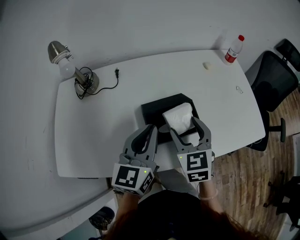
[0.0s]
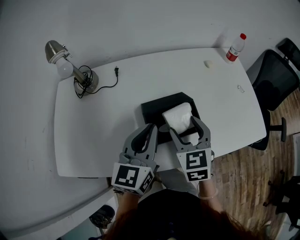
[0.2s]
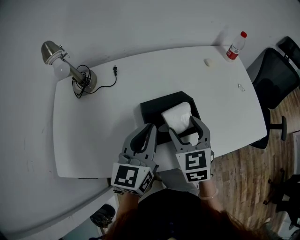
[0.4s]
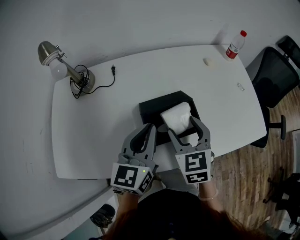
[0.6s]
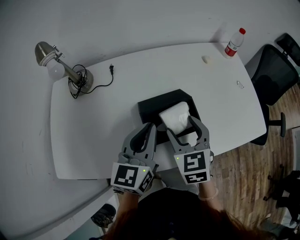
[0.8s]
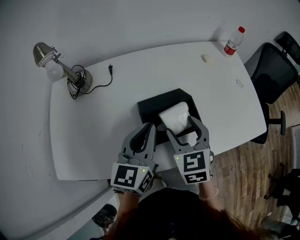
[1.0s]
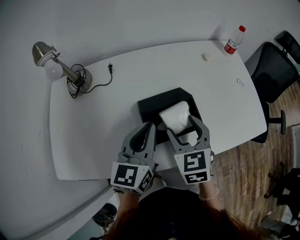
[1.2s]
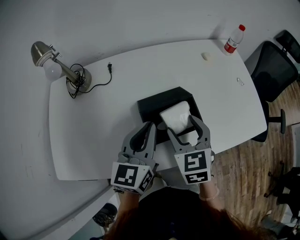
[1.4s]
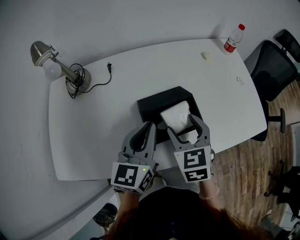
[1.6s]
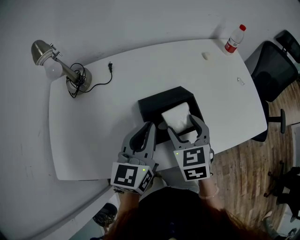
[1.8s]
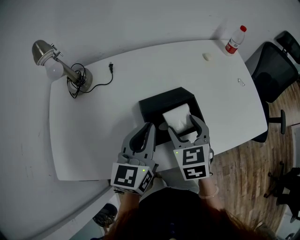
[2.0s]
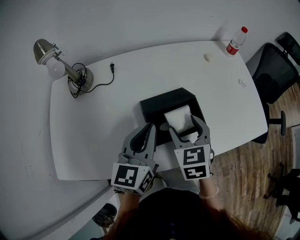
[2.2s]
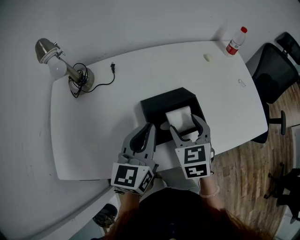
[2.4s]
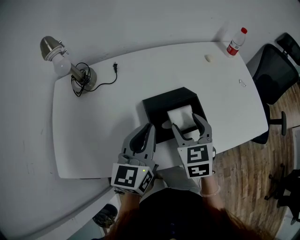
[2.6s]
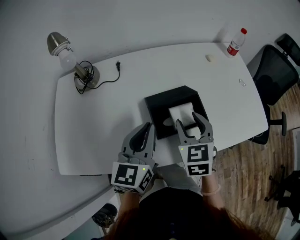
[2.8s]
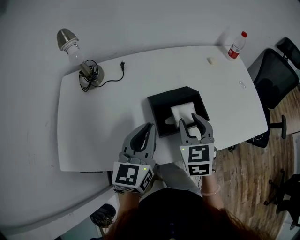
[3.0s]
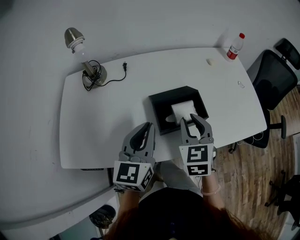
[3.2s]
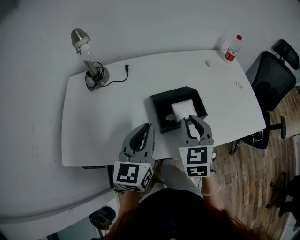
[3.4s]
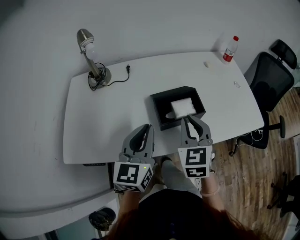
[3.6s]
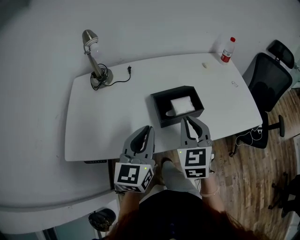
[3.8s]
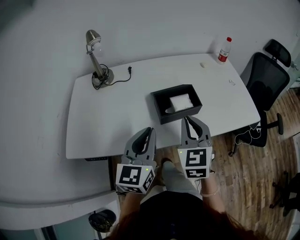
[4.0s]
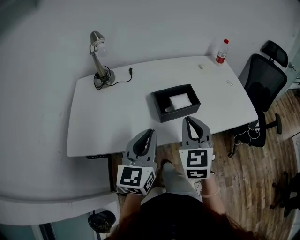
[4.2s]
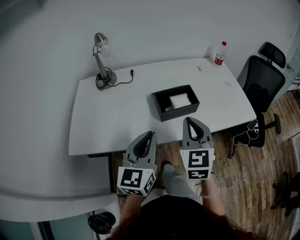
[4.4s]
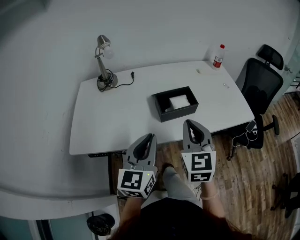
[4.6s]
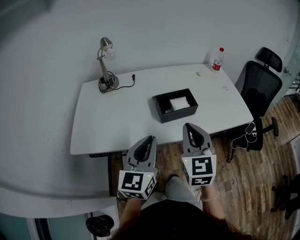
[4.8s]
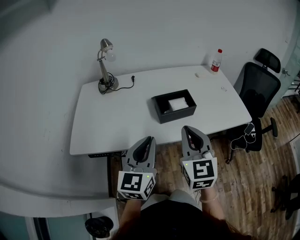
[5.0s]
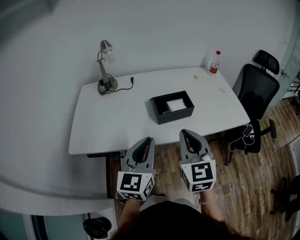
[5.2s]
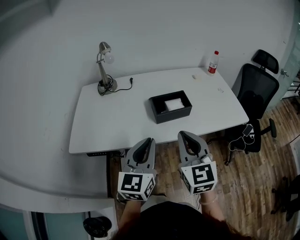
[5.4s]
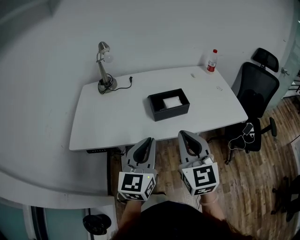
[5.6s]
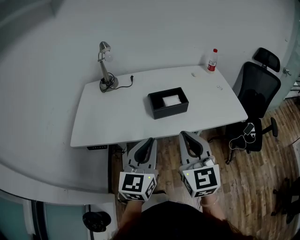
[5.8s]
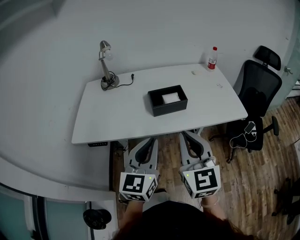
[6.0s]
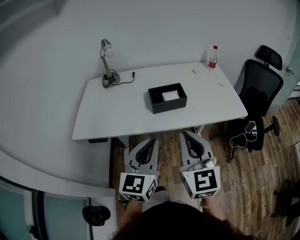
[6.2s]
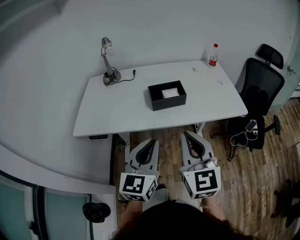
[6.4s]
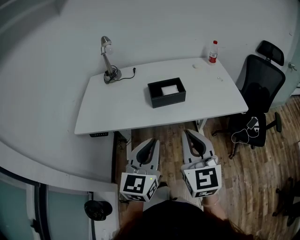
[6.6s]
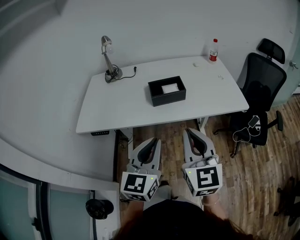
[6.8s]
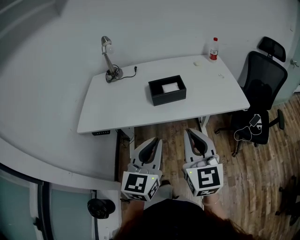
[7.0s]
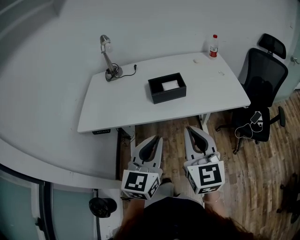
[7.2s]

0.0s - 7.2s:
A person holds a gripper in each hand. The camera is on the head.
0.0s - 2.8s: There are only small adjustments of the grippers.
2.8s - 4.4s: The left gripper travels backward by approximately 15 cm. Meanwhile the right gripper moves backward and upward, some 20 cm, and closes.
4.4s - 5.8s: The left gripper is displaced backward and to the right by some 10 cm; the right gripper goes some 10 cm backward.
5.8s - 7.2s: The grippers both shift backward and to the right by about 10 cm.

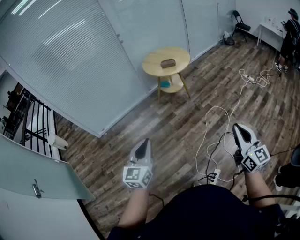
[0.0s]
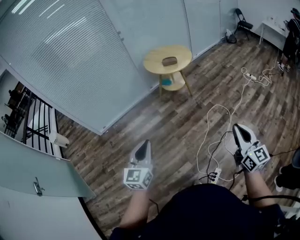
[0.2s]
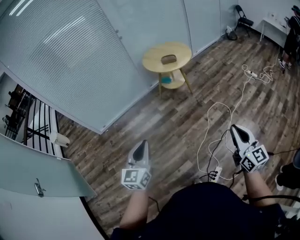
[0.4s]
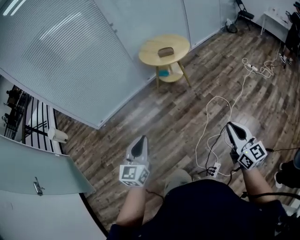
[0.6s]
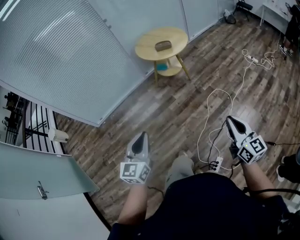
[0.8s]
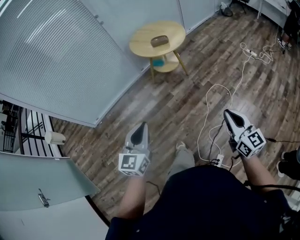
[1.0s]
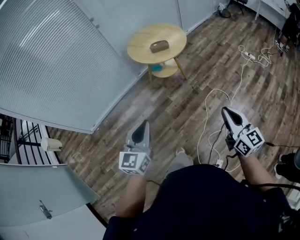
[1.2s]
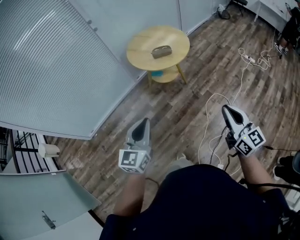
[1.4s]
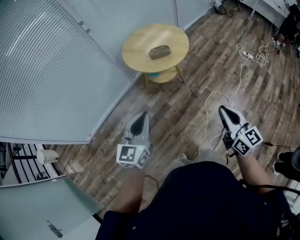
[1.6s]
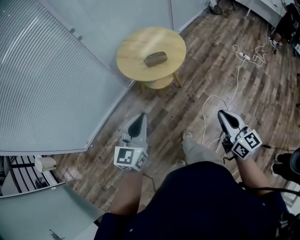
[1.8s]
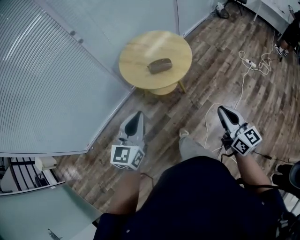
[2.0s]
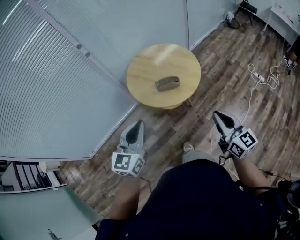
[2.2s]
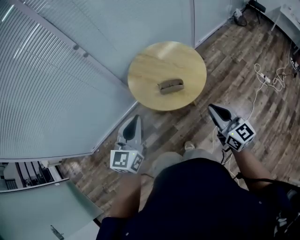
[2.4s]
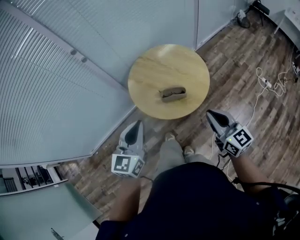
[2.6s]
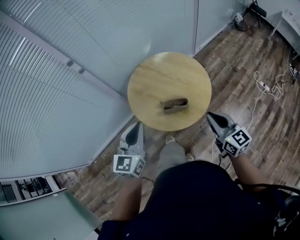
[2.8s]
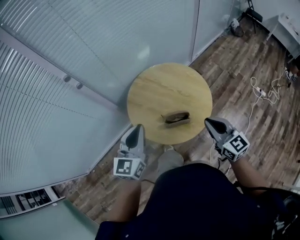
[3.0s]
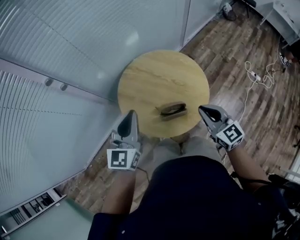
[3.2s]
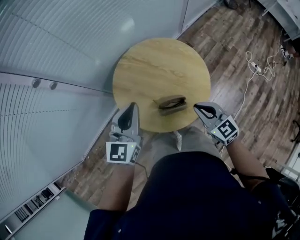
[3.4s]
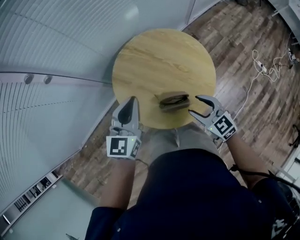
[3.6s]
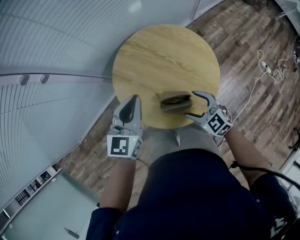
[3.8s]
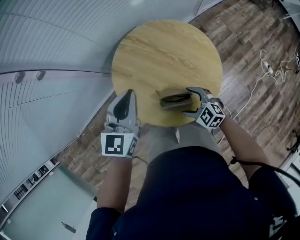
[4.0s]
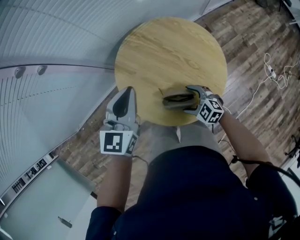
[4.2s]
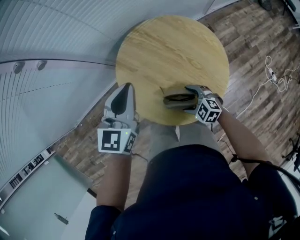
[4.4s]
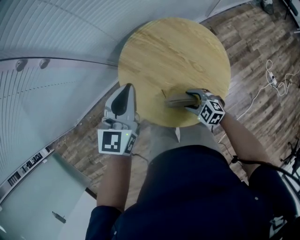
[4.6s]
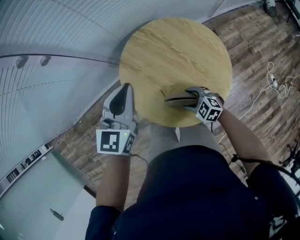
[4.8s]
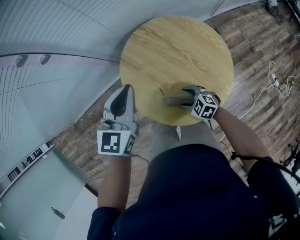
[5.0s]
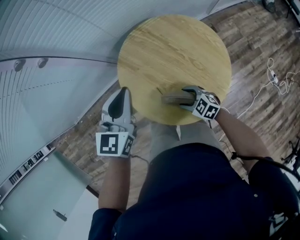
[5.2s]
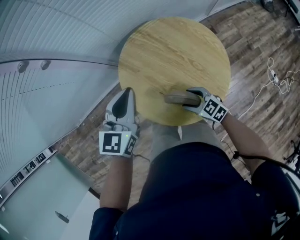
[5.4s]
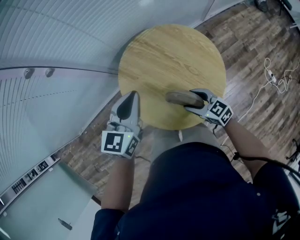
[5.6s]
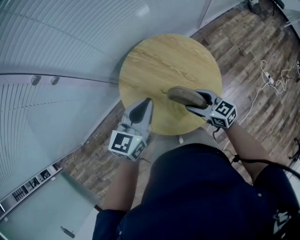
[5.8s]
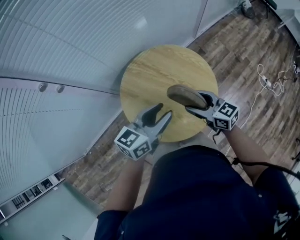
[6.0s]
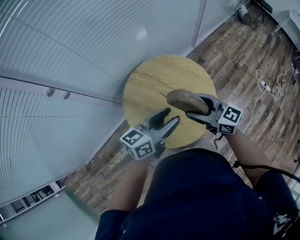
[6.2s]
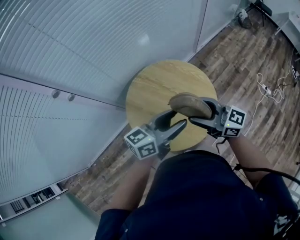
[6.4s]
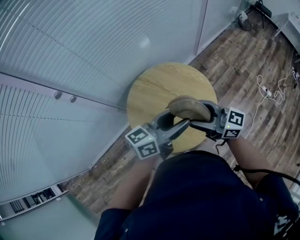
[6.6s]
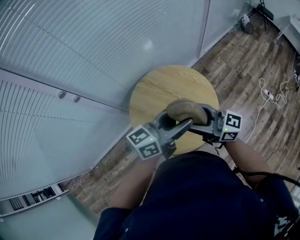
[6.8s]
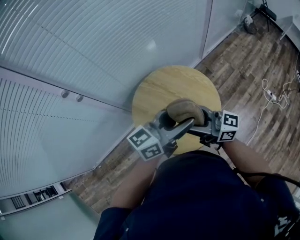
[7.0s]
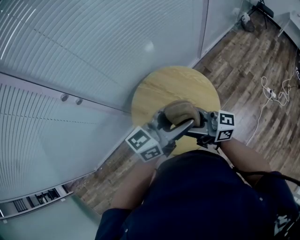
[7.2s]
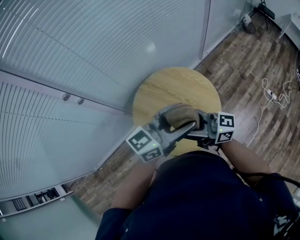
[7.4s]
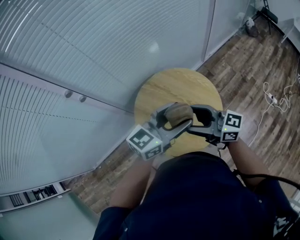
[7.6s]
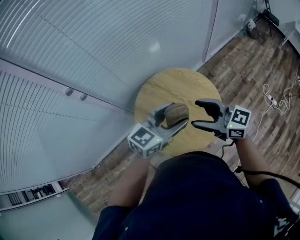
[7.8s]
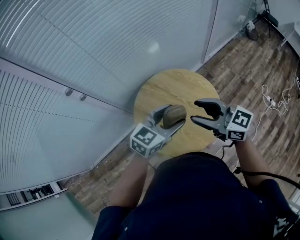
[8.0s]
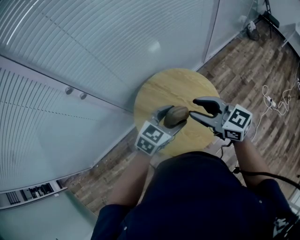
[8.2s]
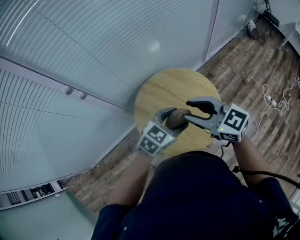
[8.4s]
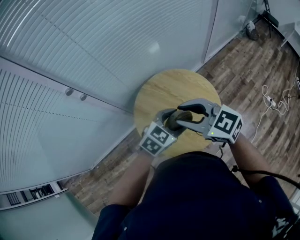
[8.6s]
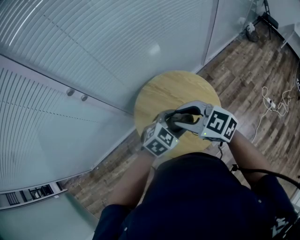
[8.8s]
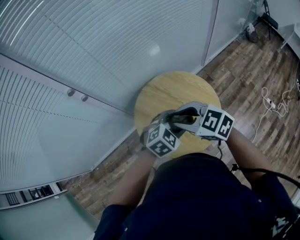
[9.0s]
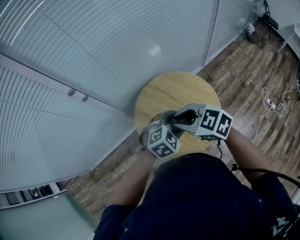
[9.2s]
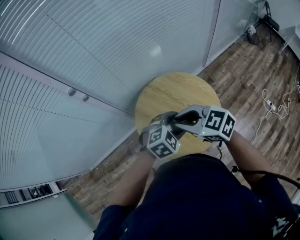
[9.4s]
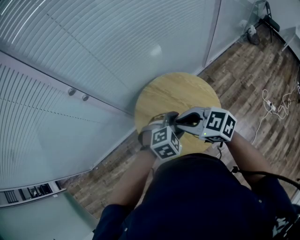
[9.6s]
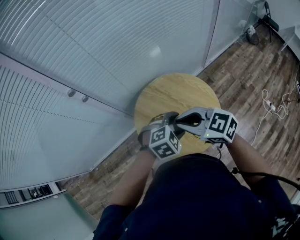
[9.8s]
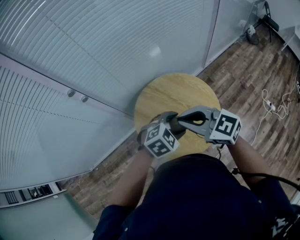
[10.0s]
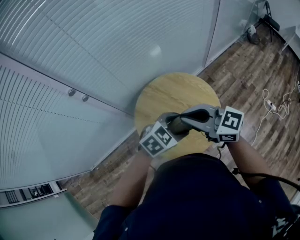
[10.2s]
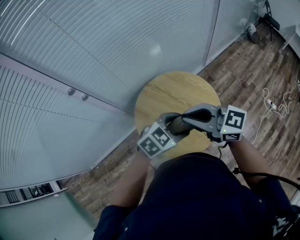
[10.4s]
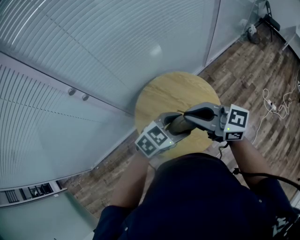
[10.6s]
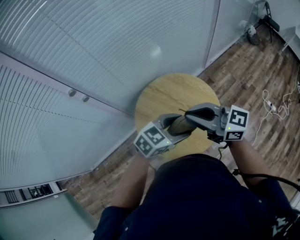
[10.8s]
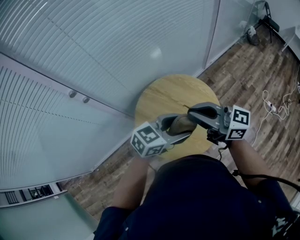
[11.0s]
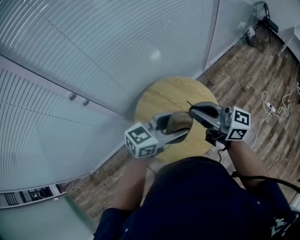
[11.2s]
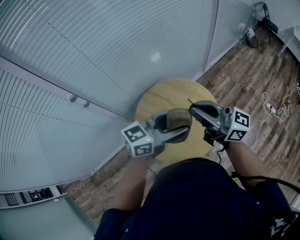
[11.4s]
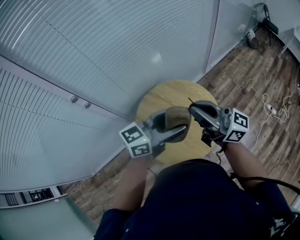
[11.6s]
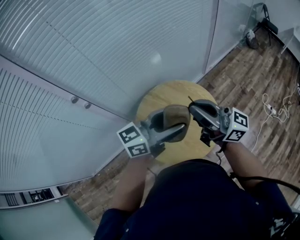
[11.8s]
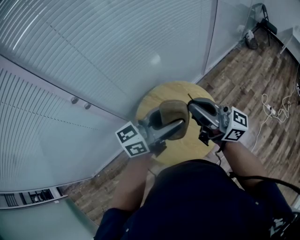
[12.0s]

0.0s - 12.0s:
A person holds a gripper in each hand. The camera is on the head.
0.0s - 1.6s: The two grippers travel together, forward, about 50 cm.
1.6s - 3.0s: Both grippers are carried forward, roughly 50 cm.
3.0s - 4.4s: The right gripper shifts roughly 30 cm downward, tilts its fingers approximately 40 degrees downward, and opens up, while the left gripper moves some 20 cm.
4.4s - 6.0s: The right gripper goes some 20 cm upward, and angles its fingers upward, by approximately 30 degrees, while the left gripper moves approximately 10 cm, swivels approximately 40 degrees, and opens up.
6.0s - 7.6s: Both grippers move upward, approximately 15 cm. The left gripper opens up, while the right gripper swivels roughly 30 degrees.
7.6s - 9.0s: The right gripper travels to the left by roughly 5 cm, tilts its fingers some 40 degrees downward, and closes its fingers. Meanwhile the left gripper goes roughly 10 cm downward, and points its fingers approximately 40 degrees further downward.
9.0s - 10.4s: The right gripper is displaced upward by roughly 5 cm, and changes its angle by some 30 degrees.
10.4s - 12.0s: The right gripper heads upward, covering about 10 cm, and points its fingers some 30 degrees further upward; the left gripper shifts some 15 cm upward, and angles its fingers upward, by roughly 50 degrees.

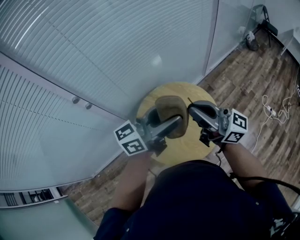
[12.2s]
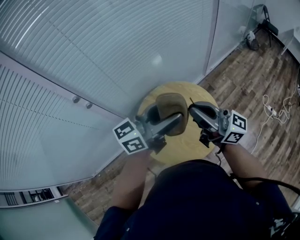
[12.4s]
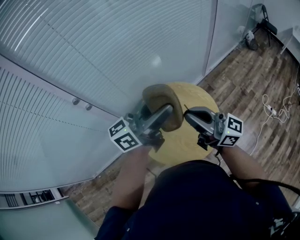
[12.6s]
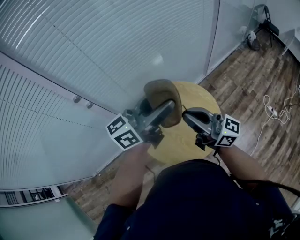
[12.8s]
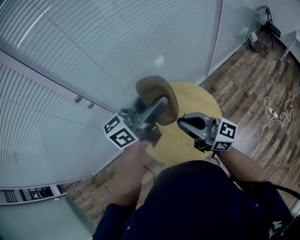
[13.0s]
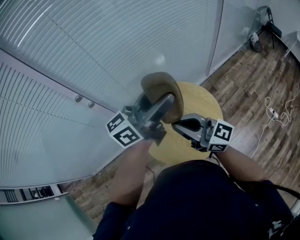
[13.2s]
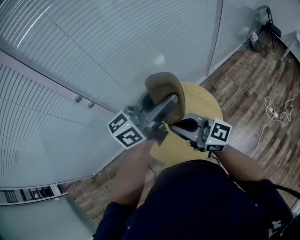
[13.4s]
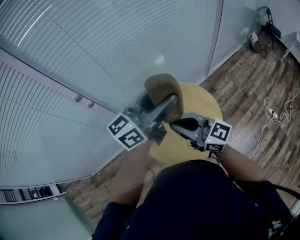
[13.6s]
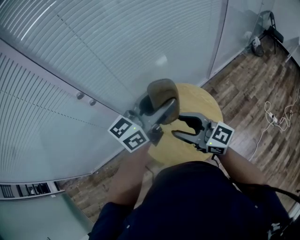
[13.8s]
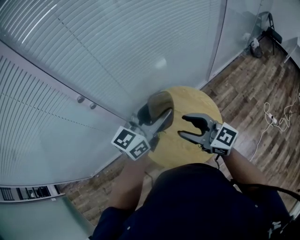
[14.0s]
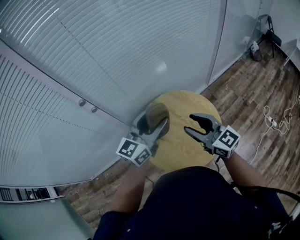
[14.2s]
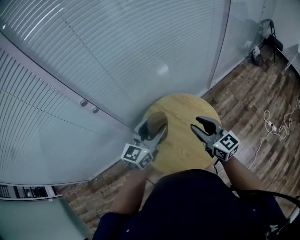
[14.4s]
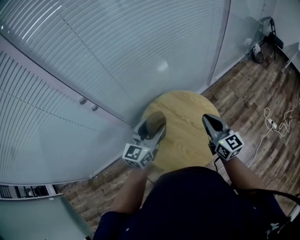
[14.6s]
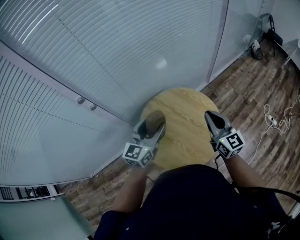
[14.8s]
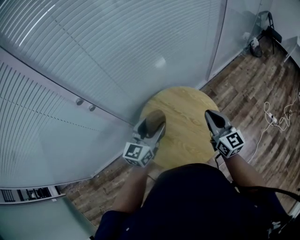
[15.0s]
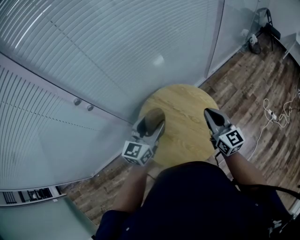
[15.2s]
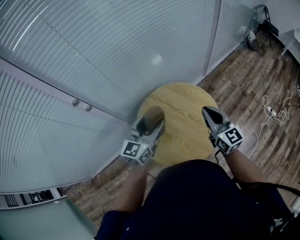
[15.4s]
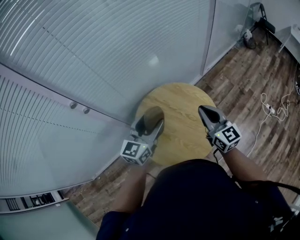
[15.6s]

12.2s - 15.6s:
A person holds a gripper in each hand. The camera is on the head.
12.2s - 13.8s: The right gripper is displaced downward and to the left by roughly 10 cm, rotates approximately 30 degrees, and opens up; the left gripper moves forward, about 5 cm, and turns by some 20 degrees.
13.8s - 15.6s: The right gripper travels to the right, downward and forward by about 15 cm, rotates roughly 40 degrees, and closes up. Meanwhile the left gripper goes roughly 15 cm downward, and changes its angle by about 20 degrees.

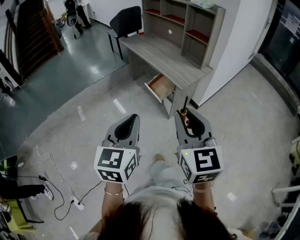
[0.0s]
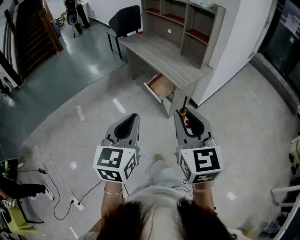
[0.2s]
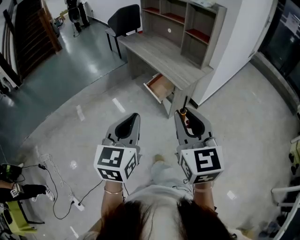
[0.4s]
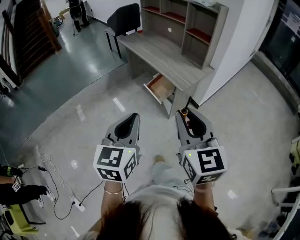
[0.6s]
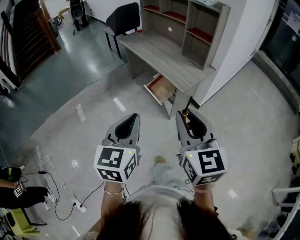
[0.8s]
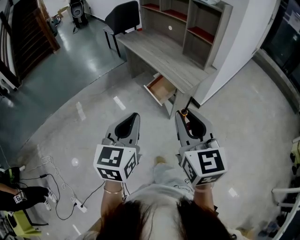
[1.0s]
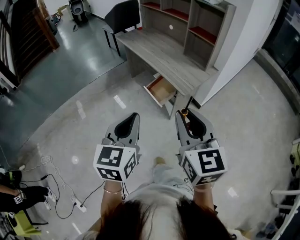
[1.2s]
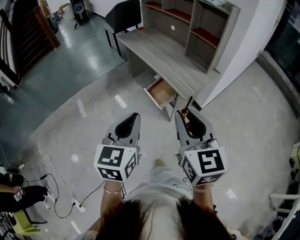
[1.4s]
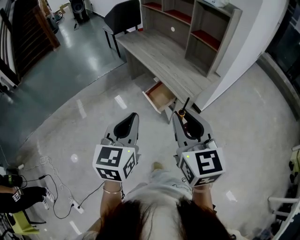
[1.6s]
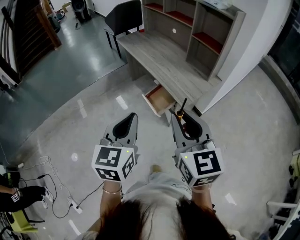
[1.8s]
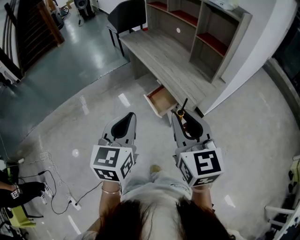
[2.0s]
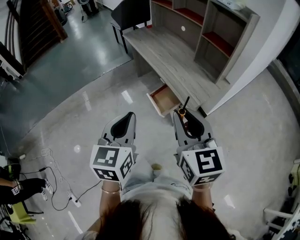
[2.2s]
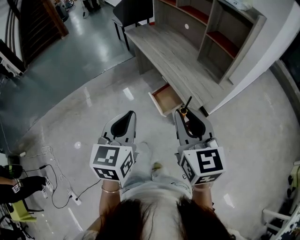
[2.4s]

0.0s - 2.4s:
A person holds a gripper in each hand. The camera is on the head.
0.0s - 1.2s: Both grippers move forward, about 10 cm.
1.2s - 2.4s: The grippers both shift forward by roughly 15 cm.
